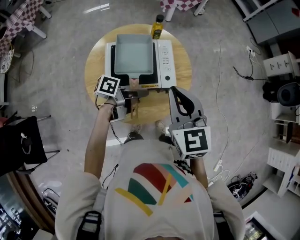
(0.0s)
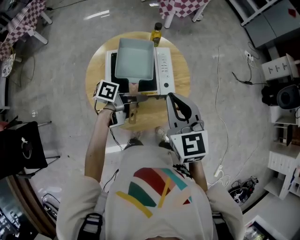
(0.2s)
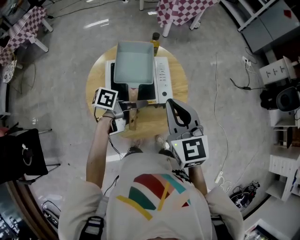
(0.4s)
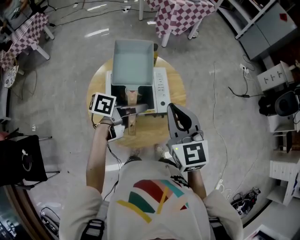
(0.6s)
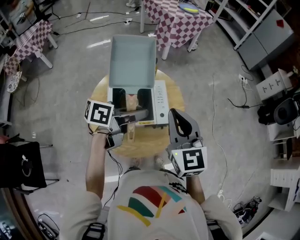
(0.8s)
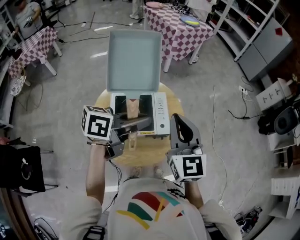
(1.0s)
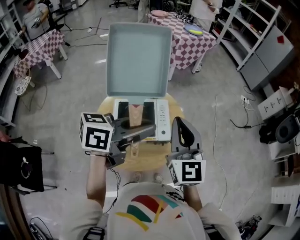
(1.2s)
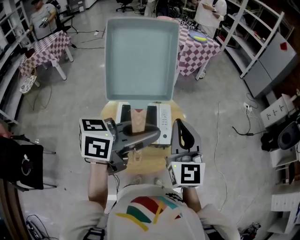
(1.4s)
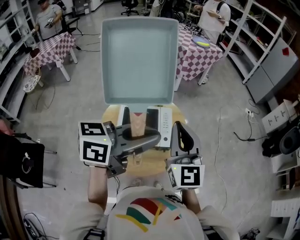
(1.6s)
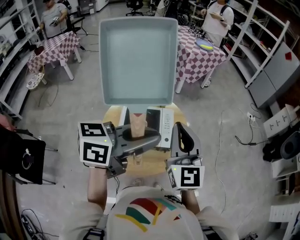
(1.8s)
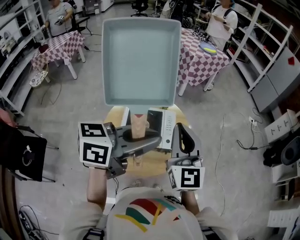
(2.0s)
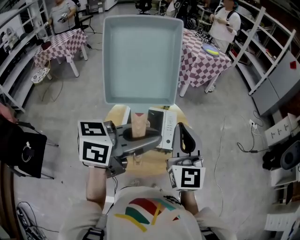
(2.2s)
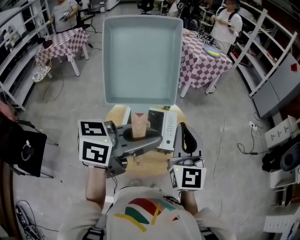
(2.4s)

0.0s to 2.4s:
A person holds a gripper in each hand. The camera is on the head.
0.0s to 1.2s: The left gripper travels upward by about 30 cm, and twists about 50 degrees clockwise, seen from behind. The right gripper is displaced upward by roughly 10 cm, and changes its angle by approximately 20 degrees.
1.2s to 2.4s: The left gripper goes roughly 5 cm upward.

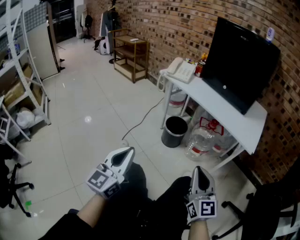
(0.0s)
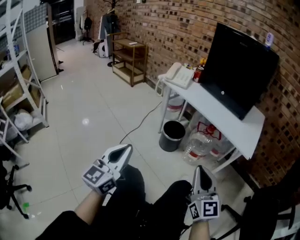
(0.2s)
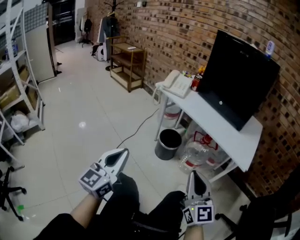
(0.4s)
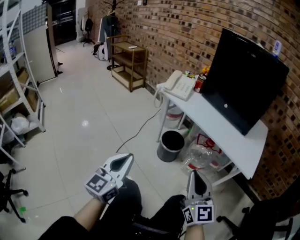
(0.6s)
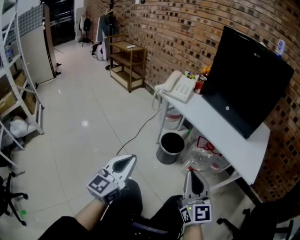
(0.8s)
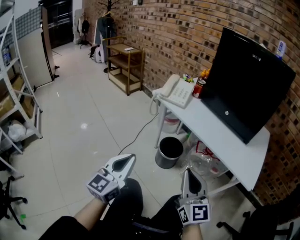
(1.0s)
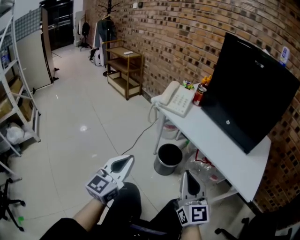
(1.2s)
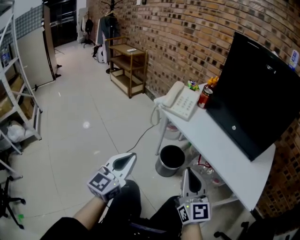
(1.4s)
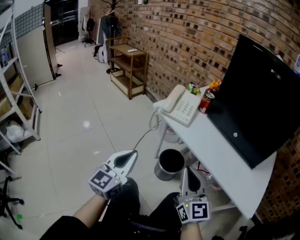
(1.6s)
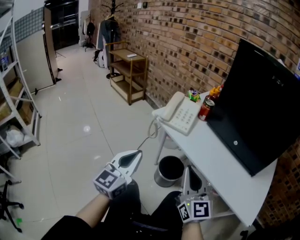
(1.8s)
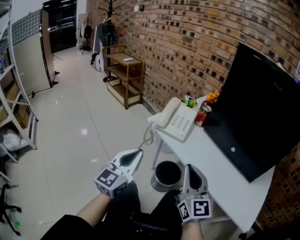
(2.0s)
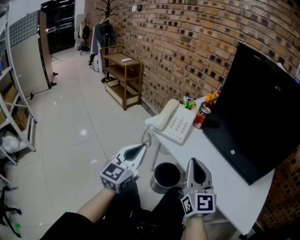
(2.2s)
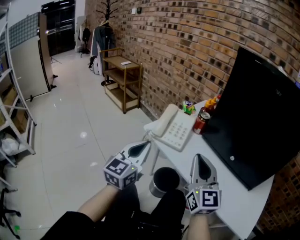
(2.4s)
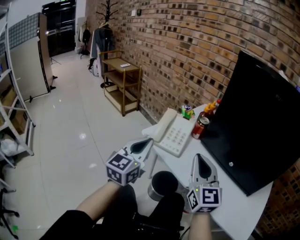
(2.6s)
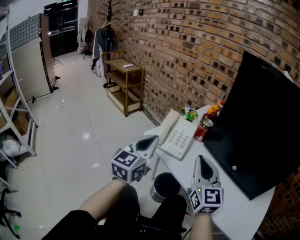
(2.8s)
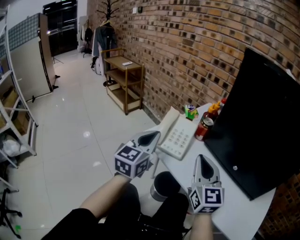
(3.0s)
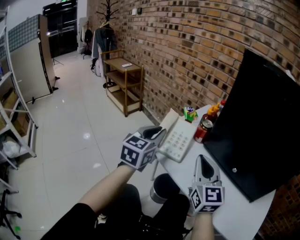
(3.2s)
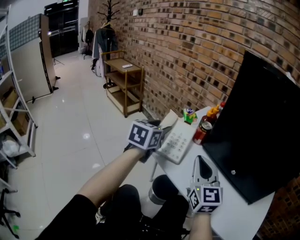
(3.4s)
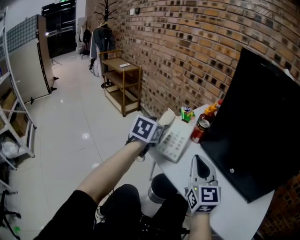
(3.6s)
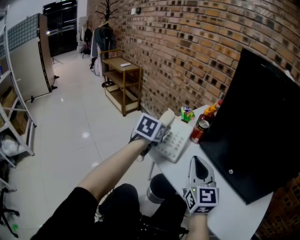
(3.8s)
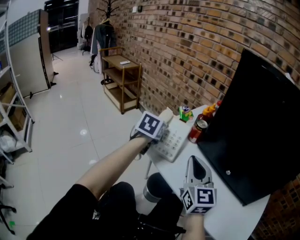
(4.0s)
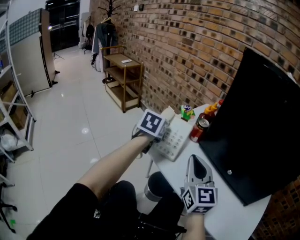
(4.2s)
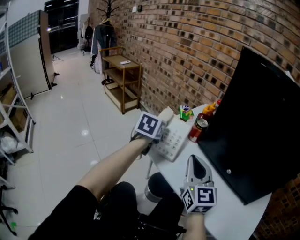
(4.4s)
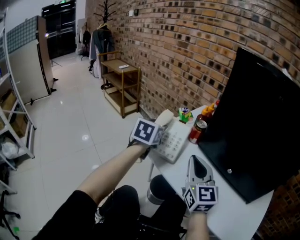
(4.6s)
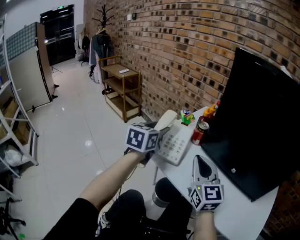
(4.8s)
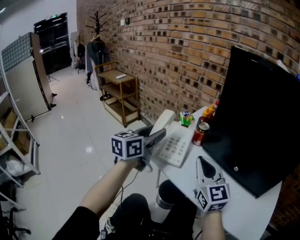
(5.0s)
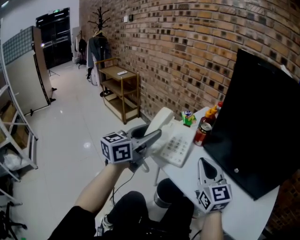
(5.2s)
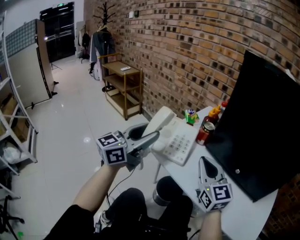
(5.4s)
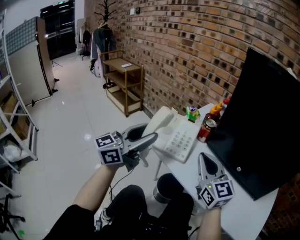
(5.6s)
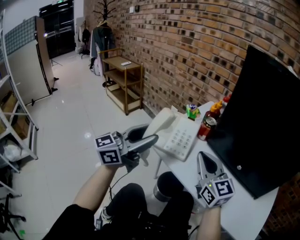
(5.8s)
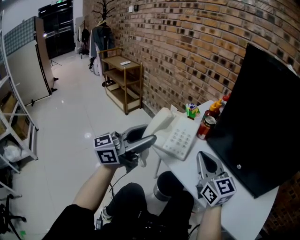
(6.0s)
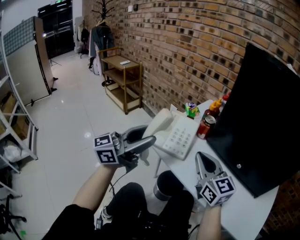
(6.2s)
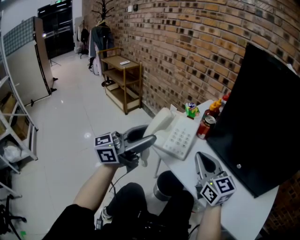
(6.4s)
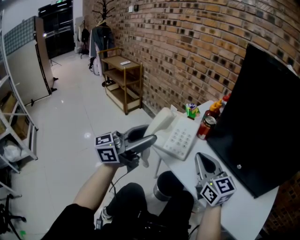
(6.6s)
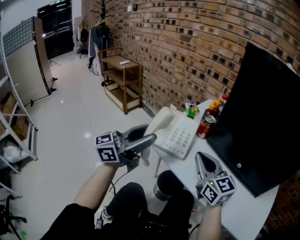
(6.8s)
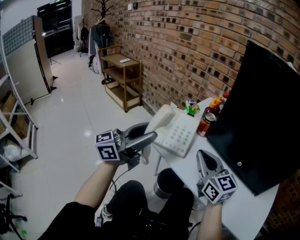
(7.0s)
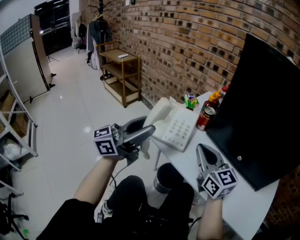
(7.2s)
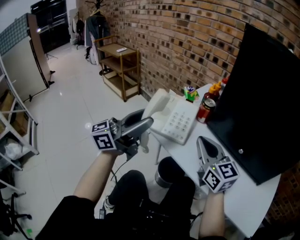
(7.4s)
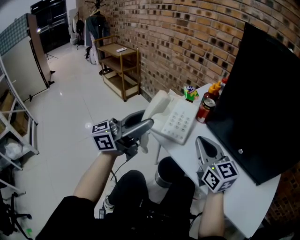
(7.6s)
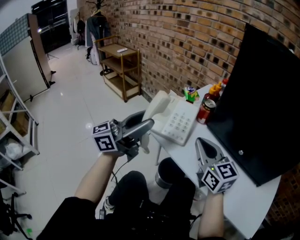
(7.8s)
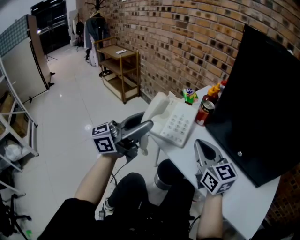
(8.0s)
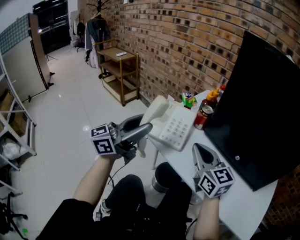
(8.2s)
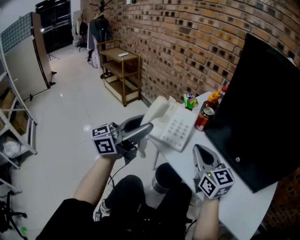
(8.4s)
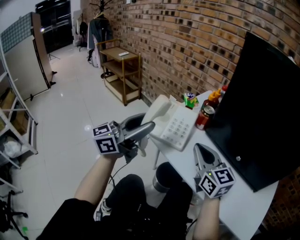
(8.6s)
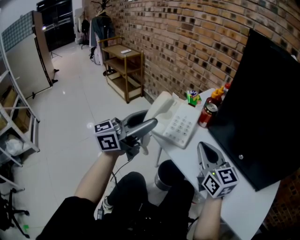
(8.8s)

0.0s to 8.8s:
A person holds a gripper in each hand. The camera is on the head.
0.0s to 1.4s: The two grippers go approximately 25 cm forward.
1.4s to 3.0s: Both grippers travel together forward, roughly 25 cm.
3.0s to 4.4s: The left gripper moves forward, about 15 cm, changes its angle by some 30 degrees, and opens.
4.4s to 5.8s: The left gripper travels backward and upward by approximately 20 cm, and tilts its fingers roughly 50 degrees upward.
5.8s to 8.8s: The grippers move only a little.

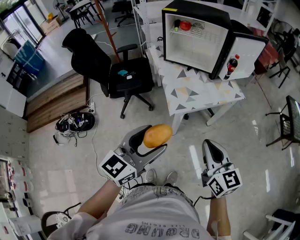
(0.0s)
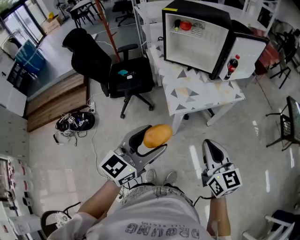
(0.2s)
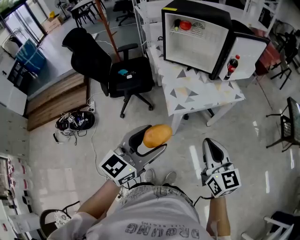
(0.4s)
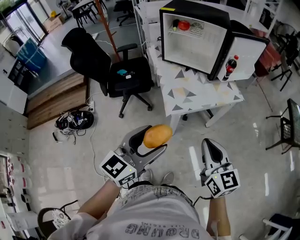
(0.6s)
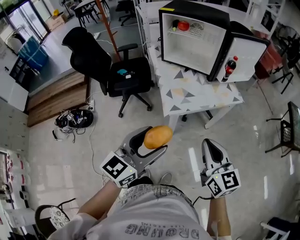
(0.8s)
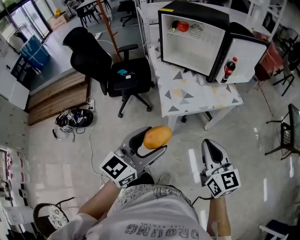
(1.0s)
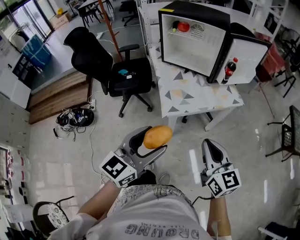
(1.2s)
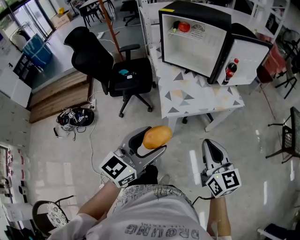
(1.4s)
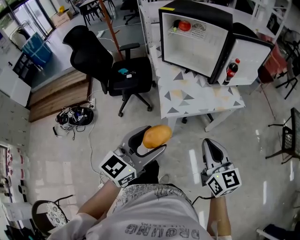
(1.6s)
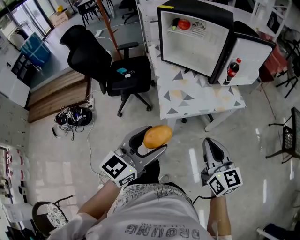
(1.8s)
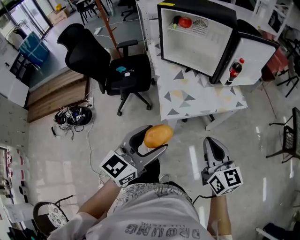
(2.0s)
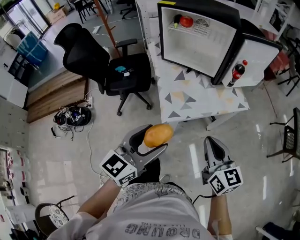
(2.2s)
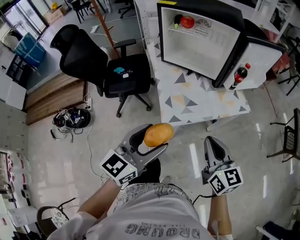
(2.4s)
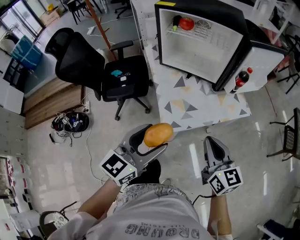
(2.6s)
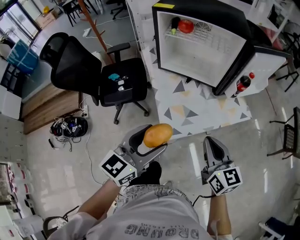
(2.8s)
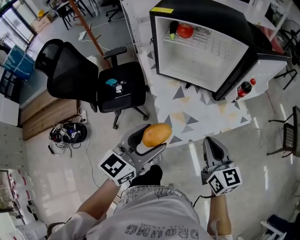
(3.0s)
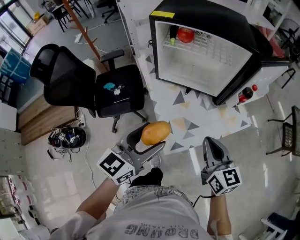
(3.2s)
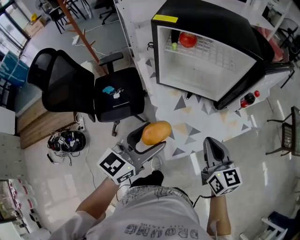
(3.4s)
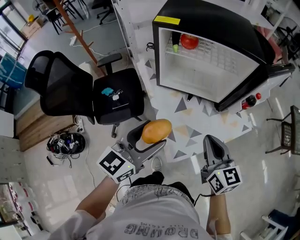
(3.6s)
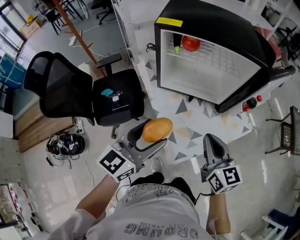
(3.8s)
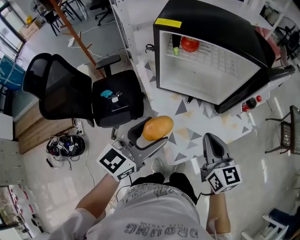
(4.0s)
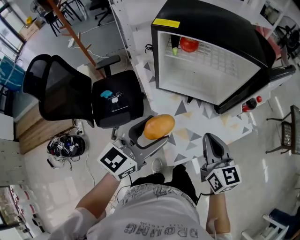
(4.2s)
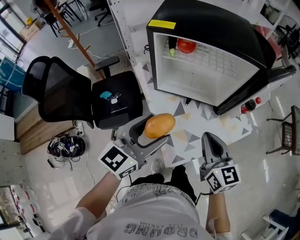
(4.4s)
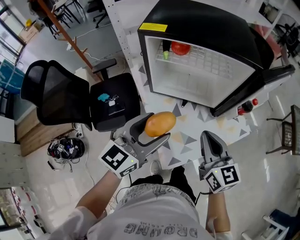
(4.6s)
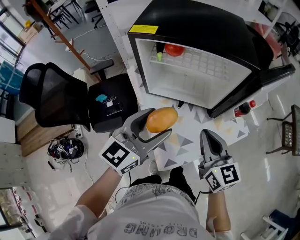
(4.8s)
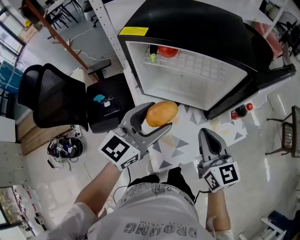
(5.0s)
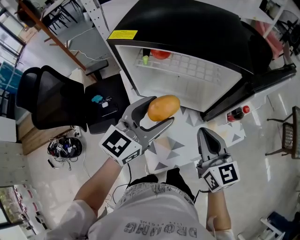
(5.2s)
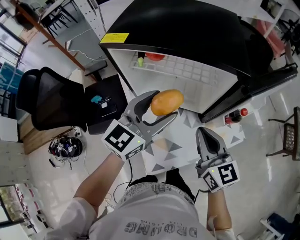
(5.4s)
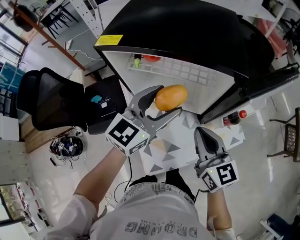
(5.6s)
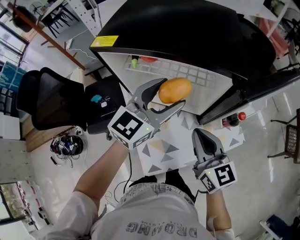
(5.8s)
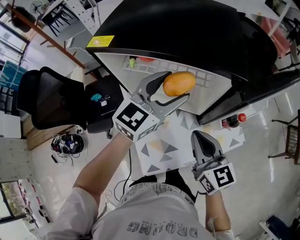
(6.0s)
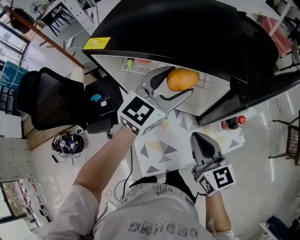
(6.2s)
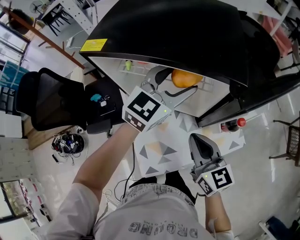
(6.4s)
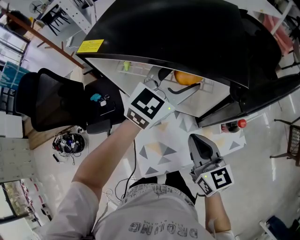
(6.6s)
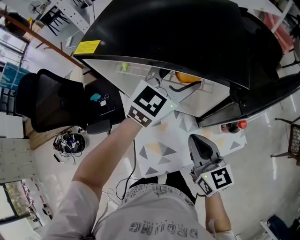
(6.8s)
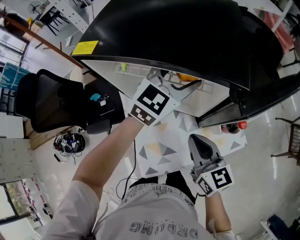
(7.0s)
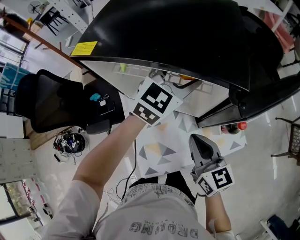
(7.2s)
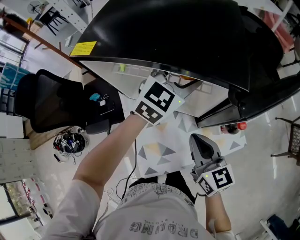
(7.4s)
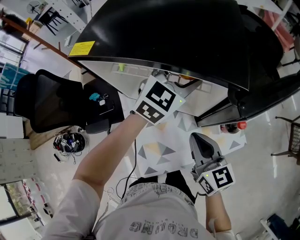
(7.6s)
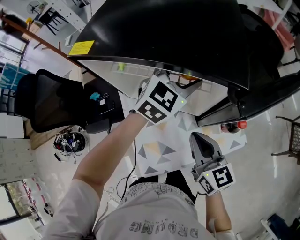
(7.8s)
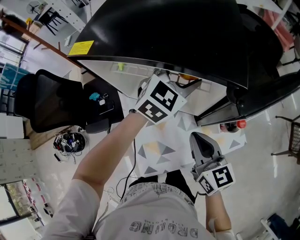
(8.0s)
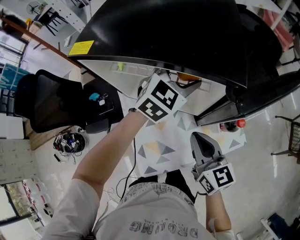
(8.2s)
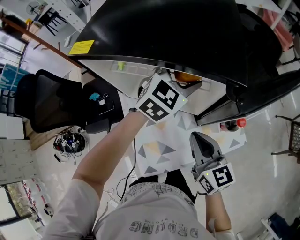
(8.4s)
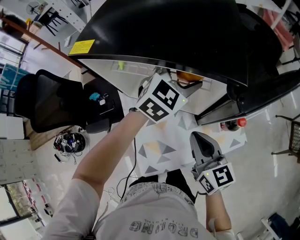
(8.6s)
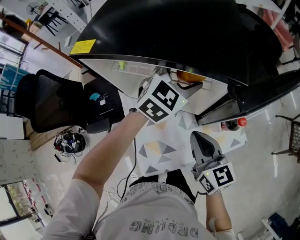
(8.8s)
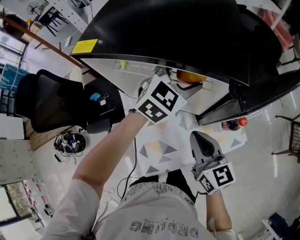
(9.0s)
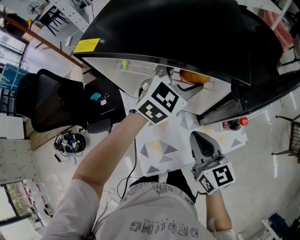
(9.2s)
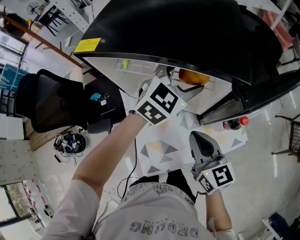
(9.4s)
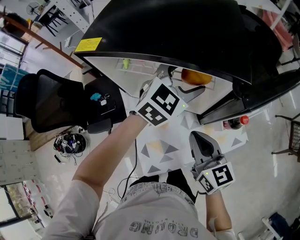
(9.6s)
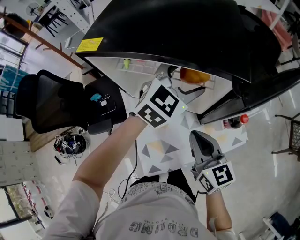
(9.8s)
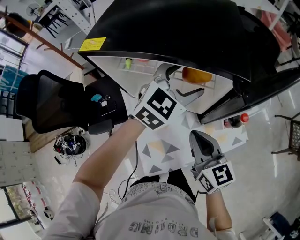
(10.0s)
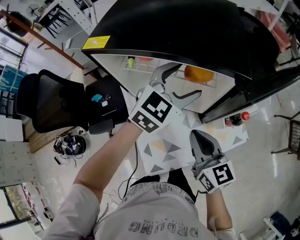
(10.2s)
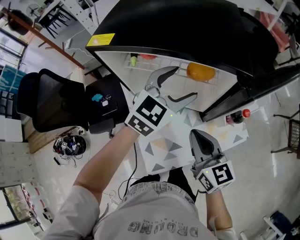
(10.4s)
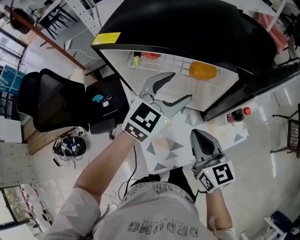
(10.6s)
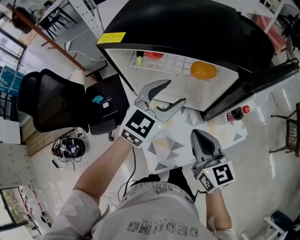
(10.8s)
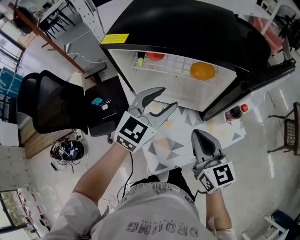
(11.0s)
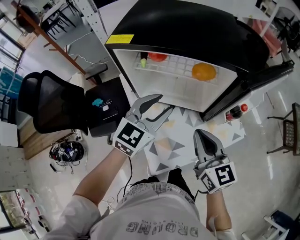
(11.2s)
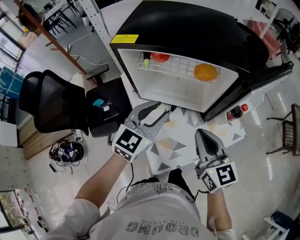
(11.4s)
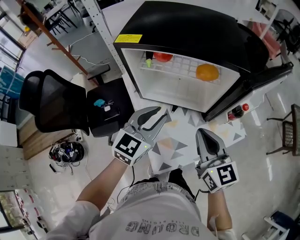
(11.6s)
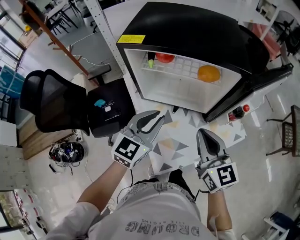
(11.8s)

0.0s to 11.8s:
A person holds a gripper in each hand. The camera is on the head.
0.0s to 1.4s: The grippers both shift to the right by about 5 cm.
1.4s to 3.0s: Both grippers travel together forward, roughly 25 cm.
3.0s to 4.4s: The right gripper travels forward and to the left by about 15 cm. Meanwhile the left gripper travels forward by approximately 15 cm.
4.4s to 6.0s: The left gripper moves forward and to the right, some 30 cm. Meanwhile the right gripper goes some 15 cm forward and to the right.
6.0s to 7.4s: The left gripper is displaced forward and to the right by about 10 cm.
7.4s to 8.8s: There are only small adjustments of the grippers.
8.8s to 10.4s: The left gripper shifts some 5 cm backward.
10.4s to 11.8s: The right gripper heads upward, covering about 5 cm. Meanwhile the left gripper travels backward and to the left by roughly 20 cm, and closes.

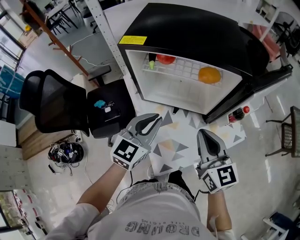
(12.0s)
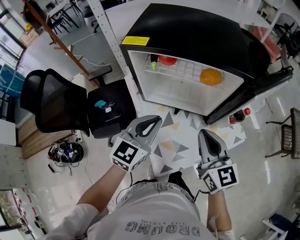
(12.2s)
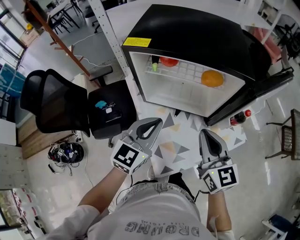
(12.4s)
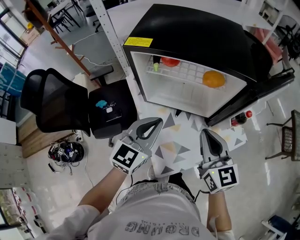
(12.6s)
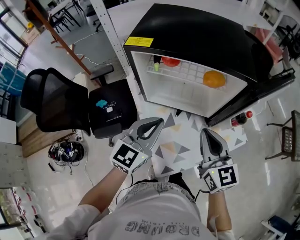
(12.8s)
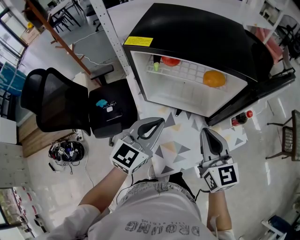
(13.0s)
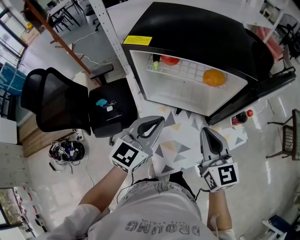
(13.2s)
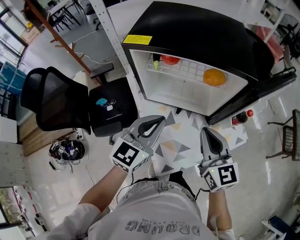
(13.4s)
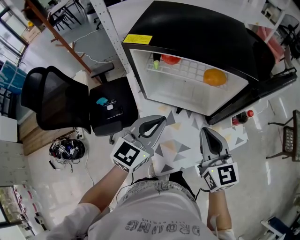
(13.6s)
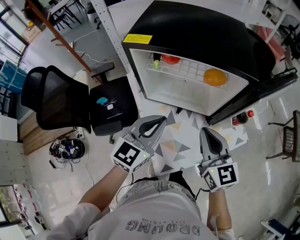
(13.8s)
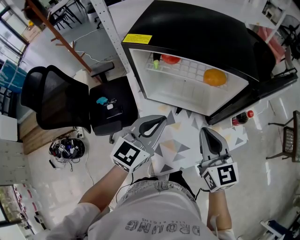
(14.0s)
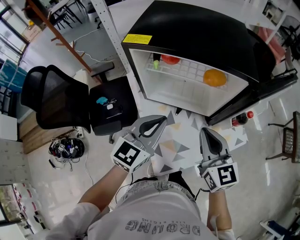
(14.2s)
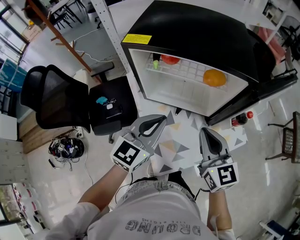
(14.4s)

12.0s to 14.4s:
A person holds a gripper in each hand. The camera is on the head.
12.0s to 13.2s: There are only small adjustments of the grippers.
13.2s to 14.4s: Neither gripper changes place.
